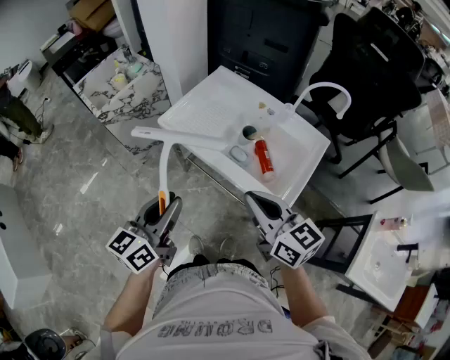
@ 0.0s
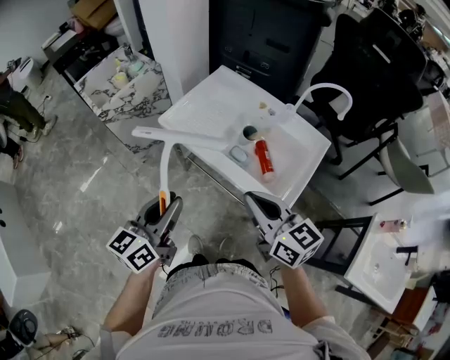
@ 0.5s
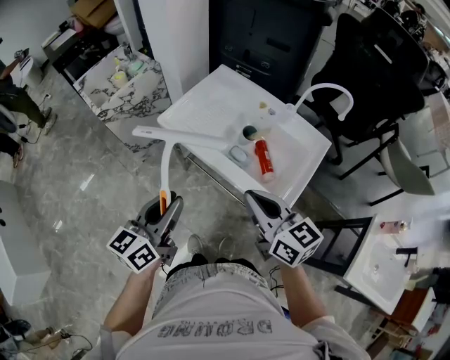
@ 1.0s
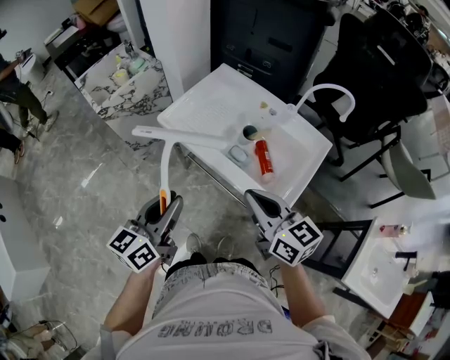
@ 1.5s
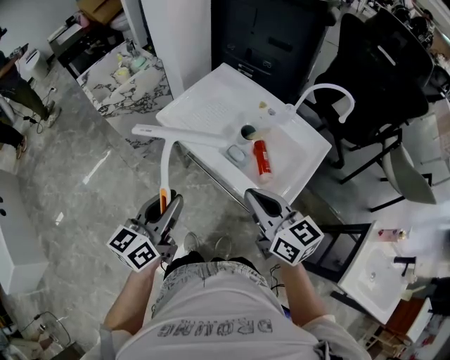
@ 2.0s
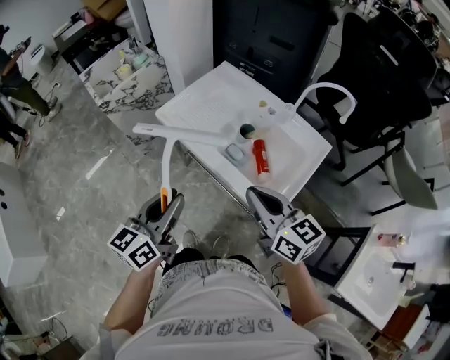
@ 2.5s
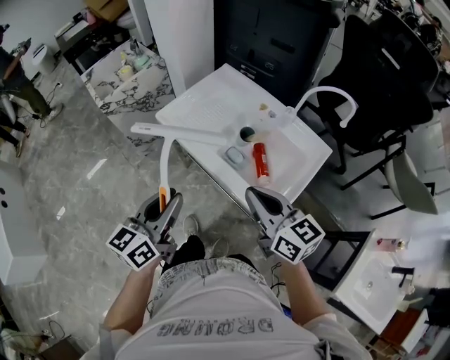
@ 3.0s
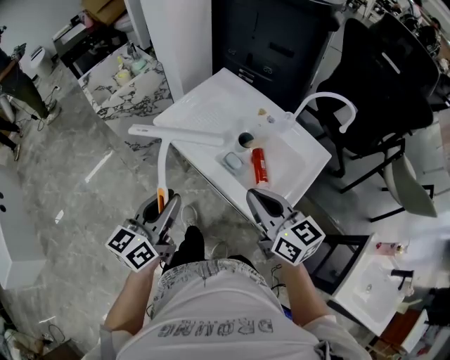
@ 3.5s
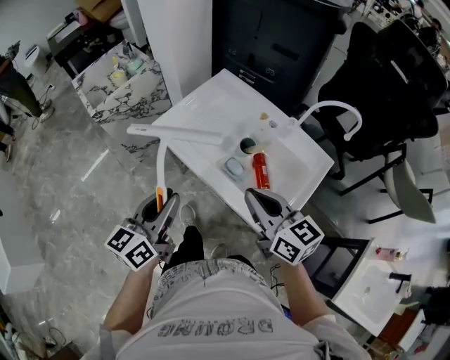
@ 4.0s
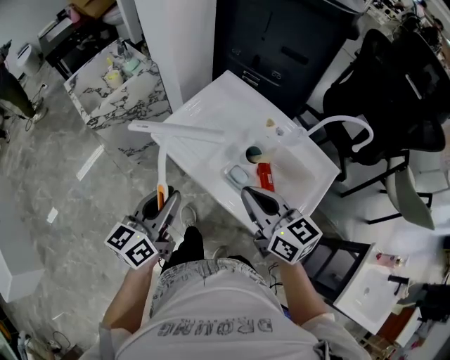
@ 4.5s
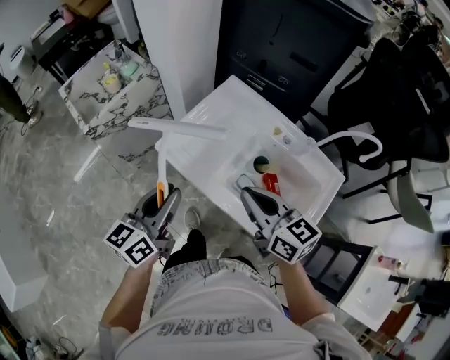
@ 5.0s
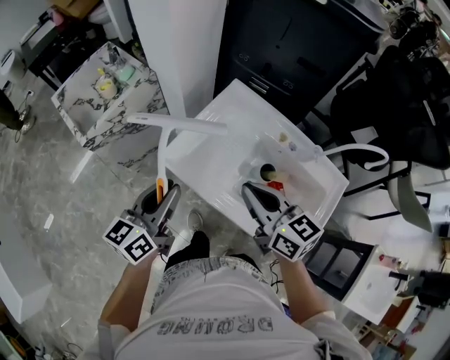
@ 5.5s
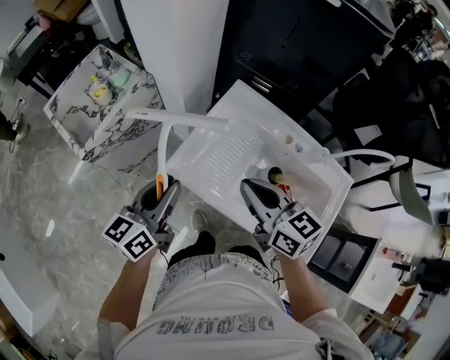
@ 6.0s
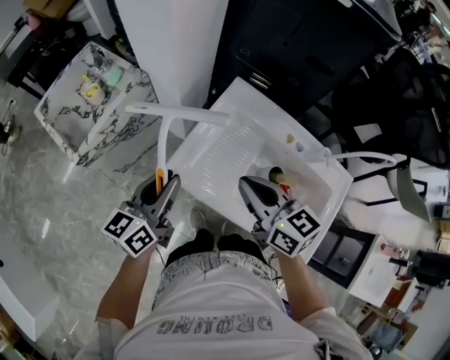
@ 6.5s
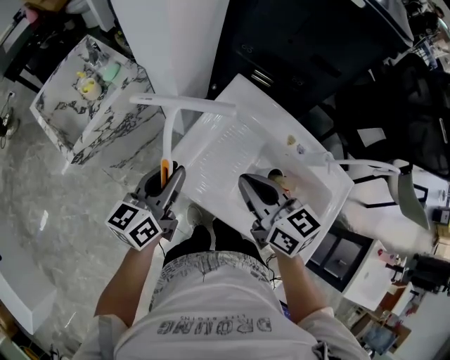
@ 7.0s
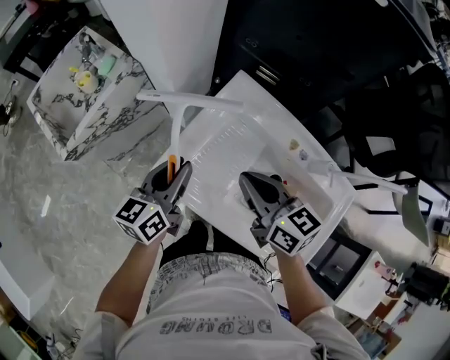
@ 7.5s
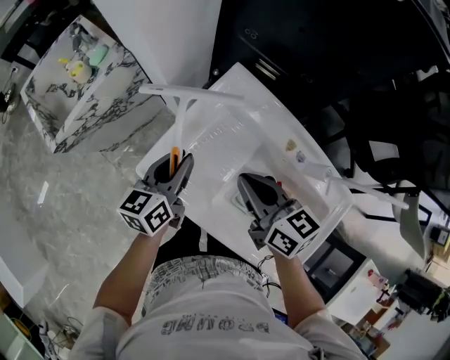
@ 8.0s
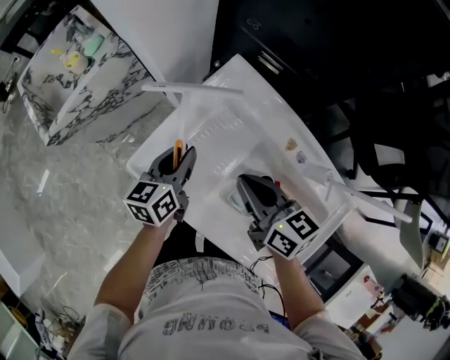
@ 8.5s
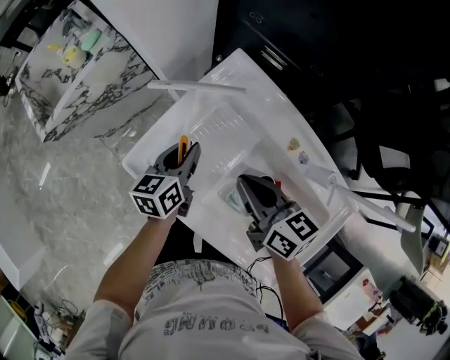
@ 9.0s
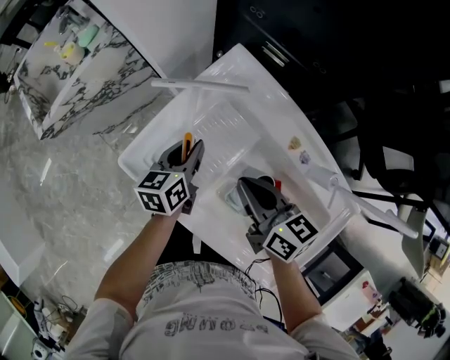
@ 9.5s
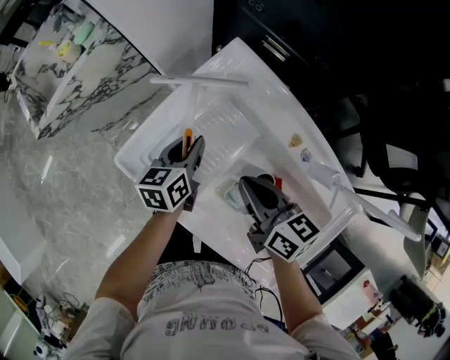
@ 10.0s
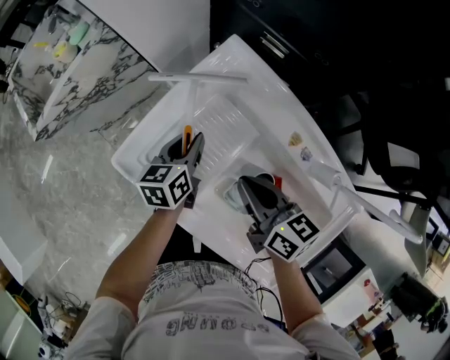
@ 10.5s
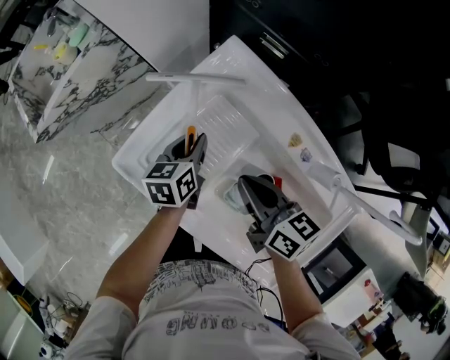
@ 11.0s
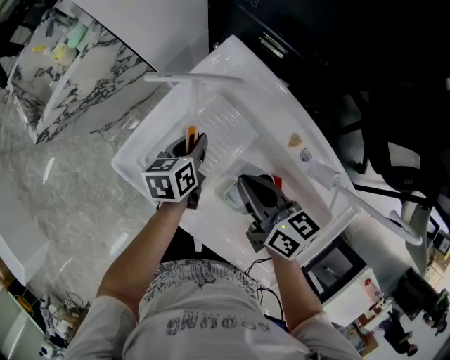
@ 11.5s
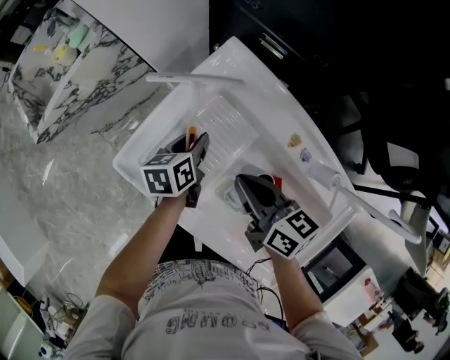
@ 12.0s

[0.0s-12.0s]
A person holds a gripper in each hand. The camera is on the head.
0.0s to 2.0s: There are only small adjustments of the grippers.
2.0s to 4.0s: The two grippers go approximately 5 cm forward.
4.0s to 6.0s: The two grippers go approximately 25 cm forward and to the left.
6.0s to 8.0s: Both grippers move downward, forward and to the right, approximately 15 cm.
8.0s to 10.0s: The right gripper moves downward, roughly 10 cm. Meanwhile the left gripper shifts roughly 15 cm downward and to the right.
10.0s to 12.0s: The grippers make only small movements.

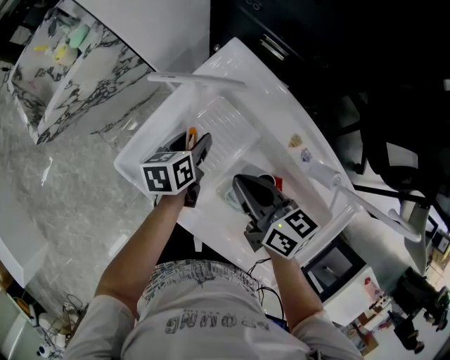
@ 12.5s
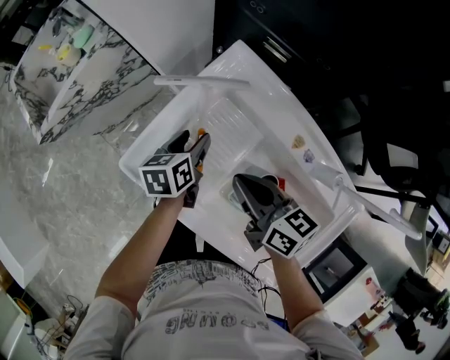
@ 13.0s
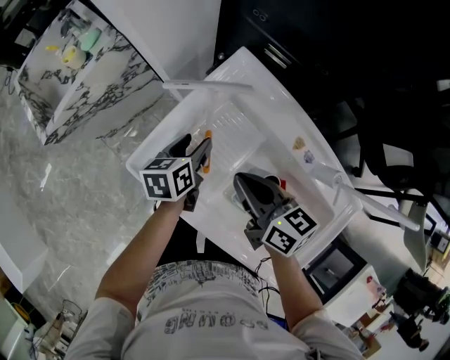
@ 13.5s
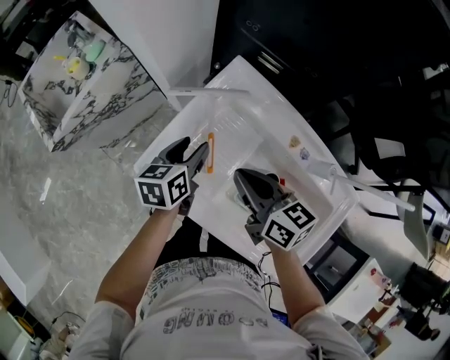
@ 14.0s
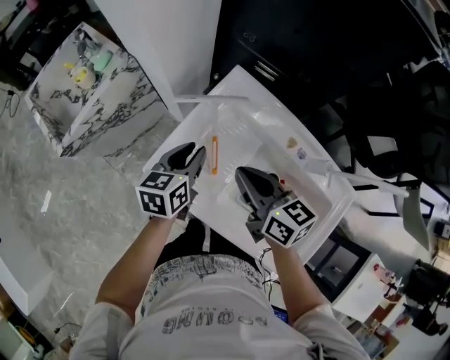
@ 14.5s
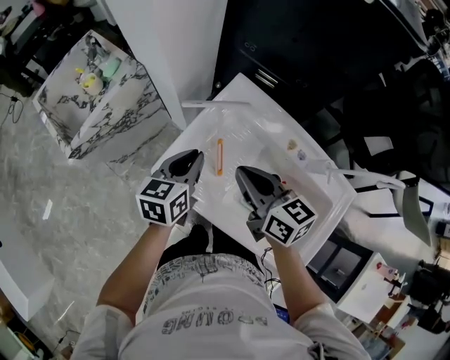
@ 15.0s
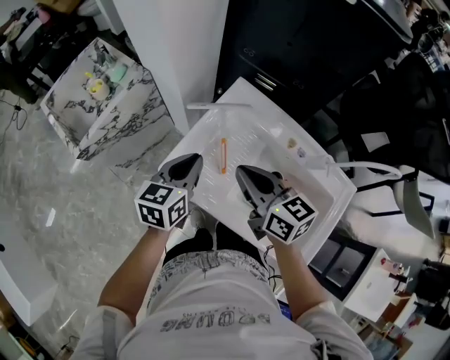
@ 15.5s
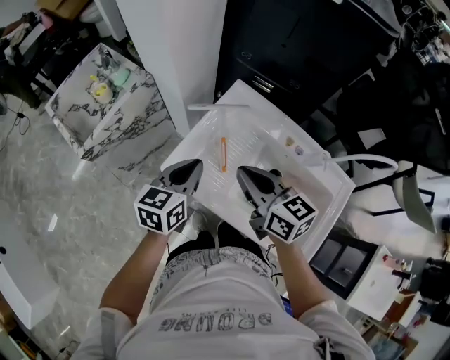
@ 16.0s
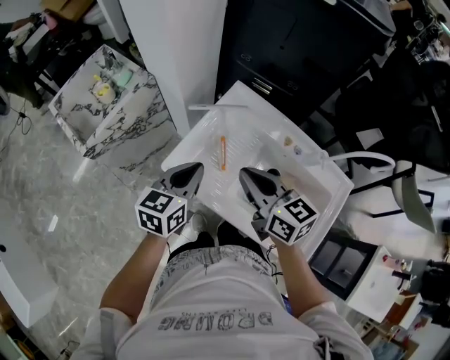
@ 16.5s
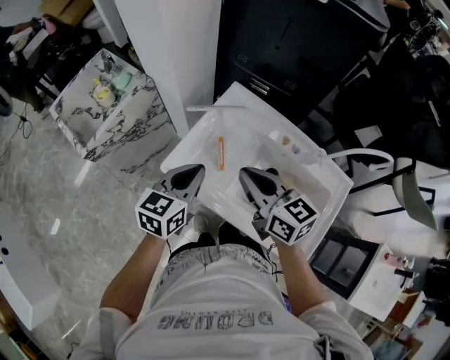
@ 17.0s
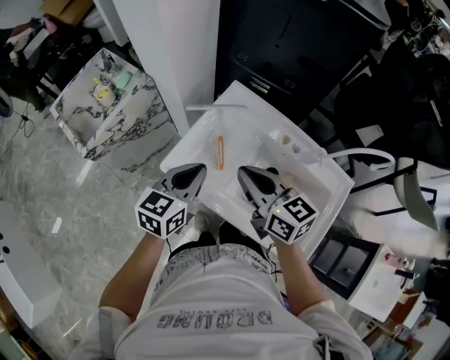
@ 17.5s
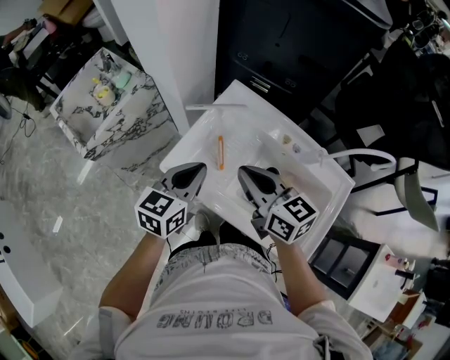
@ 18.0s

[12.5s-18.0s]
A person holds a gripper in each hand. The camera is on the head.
12.5s to 14.5s: The right gripper shifts approximately 5 cm upward, while the left gripper travels upward by about 15 cm, turns by some 20 degrees, and closes its fingers.
14.5s to 16.0s: The left gripper shifts approximately 10 cm upward and backward, and closes its fingers, while the right gripper is displaced upward by approximately 5 cm.
16.0s to 18.0s: The grippers stay close to where they were, moving slightly.

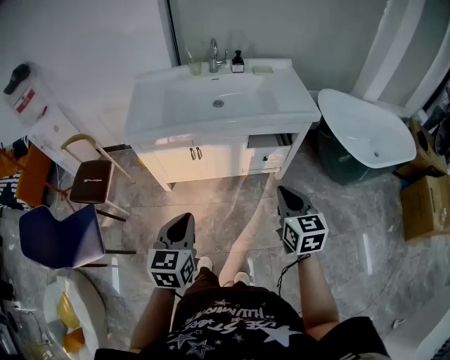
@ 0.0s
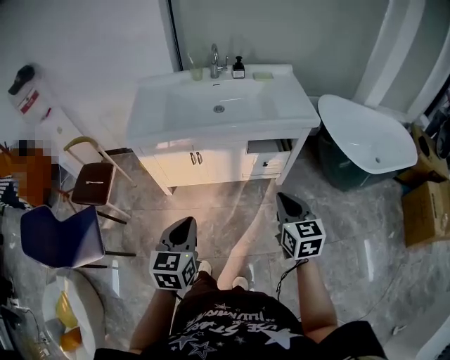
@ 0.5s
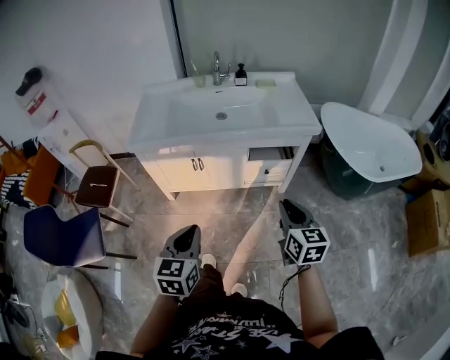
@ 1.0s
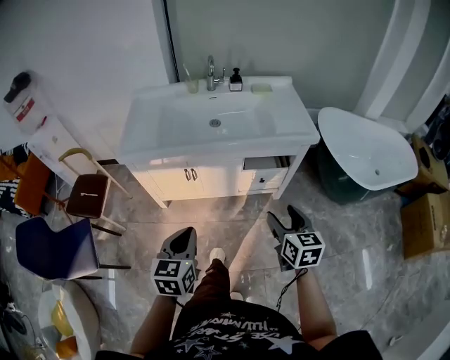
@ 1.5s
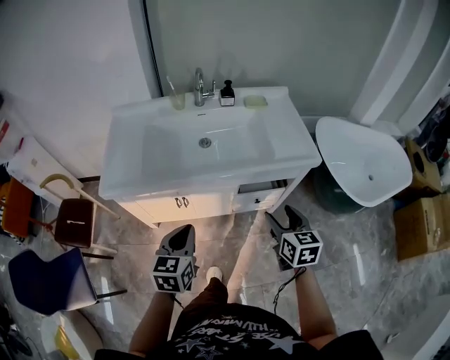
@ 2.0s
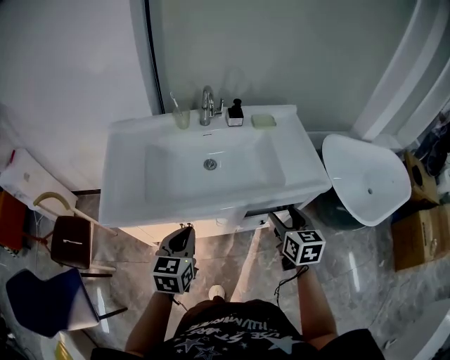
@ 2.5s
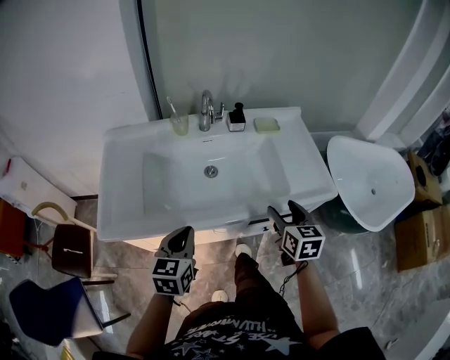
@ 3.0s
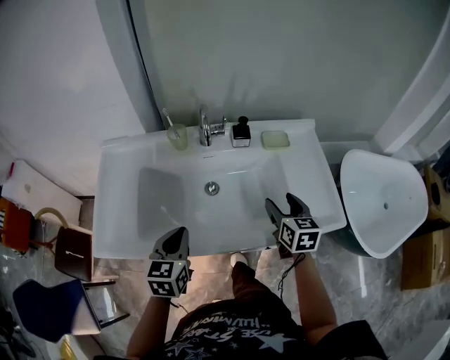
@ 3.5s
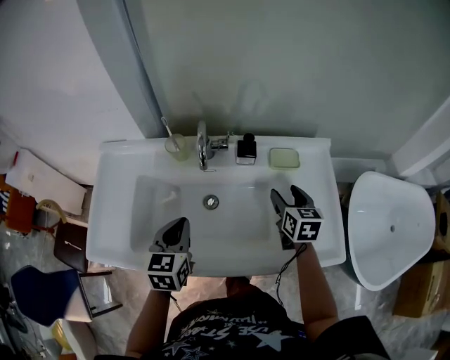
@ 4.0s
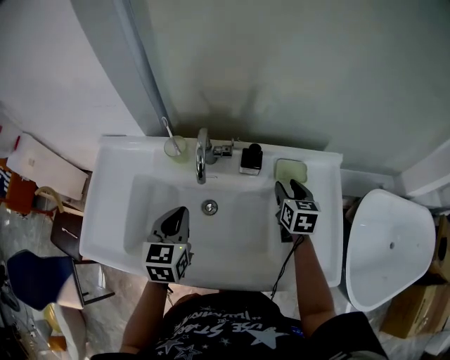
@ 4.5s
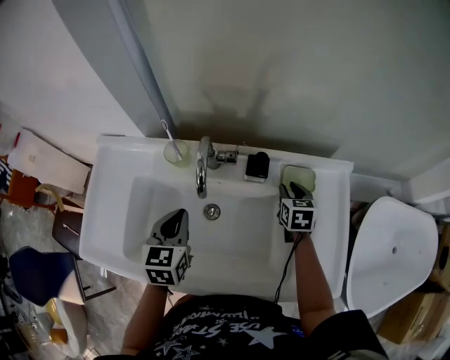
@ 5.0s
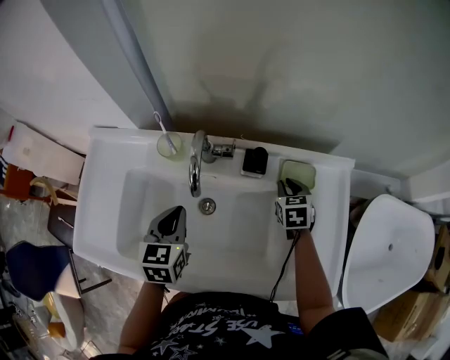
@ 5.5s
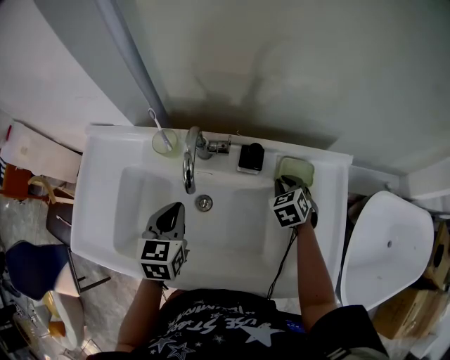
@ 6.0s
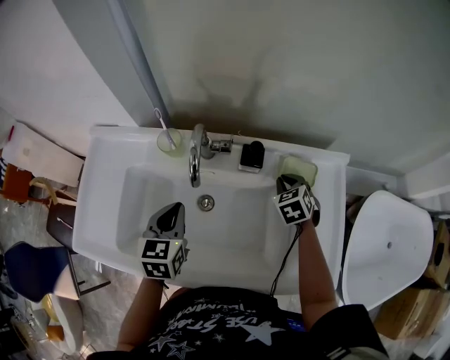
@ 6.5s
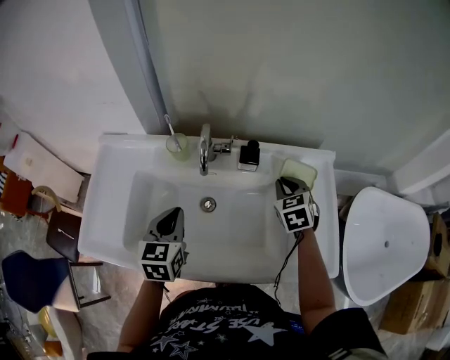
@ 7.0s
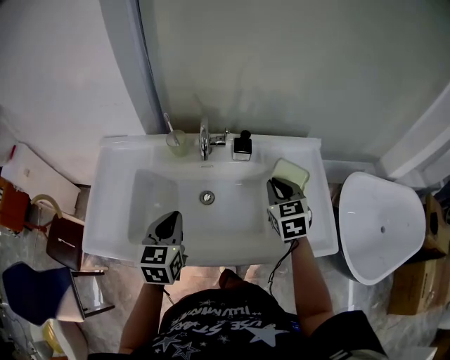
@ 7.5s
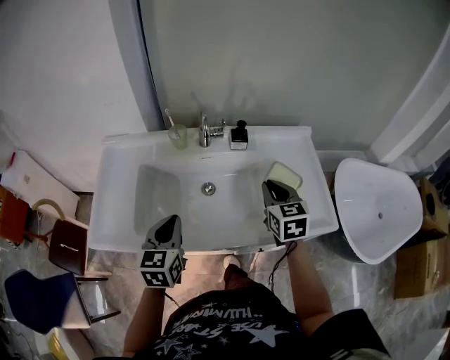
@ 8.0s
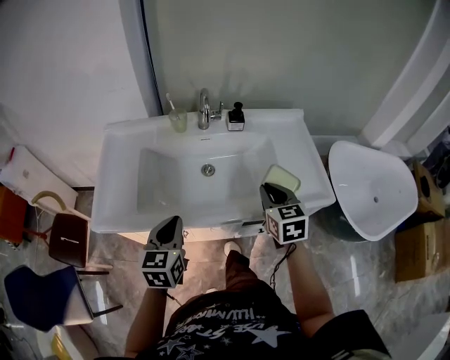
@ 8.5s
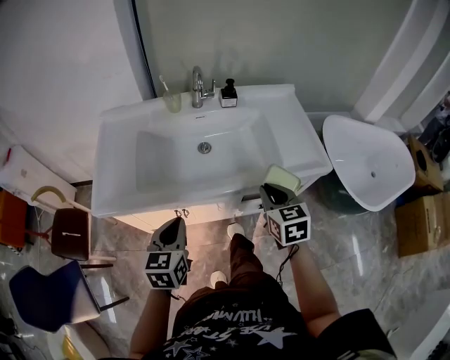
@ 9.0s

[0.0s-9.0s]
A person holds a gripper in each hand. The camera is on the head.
0.0s to 2.0s: The two grippers go approximately 20 cm forward. The right gripper opens up.
2.0s to 4.5s: Both grippers are carried forward, roughly 50 cm.
4.5s to 7.0s: The right gripper moves some 10 cm downward and comes back, changes its angle by some 30 degrees, and closes its fingers.
7.0s to 9.0s: The grippers both shift backward by about 35 cm. The right gripper swivels some 20 degrees.
